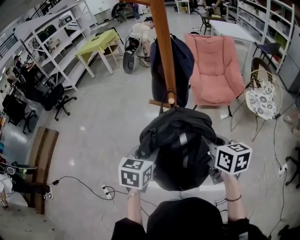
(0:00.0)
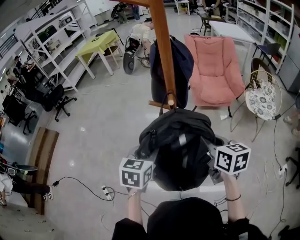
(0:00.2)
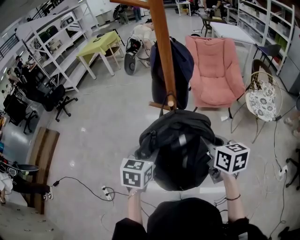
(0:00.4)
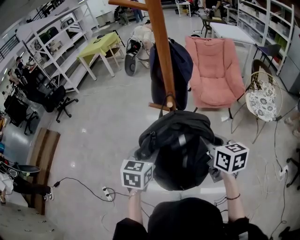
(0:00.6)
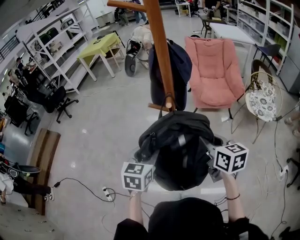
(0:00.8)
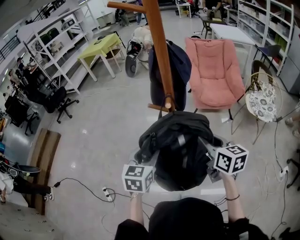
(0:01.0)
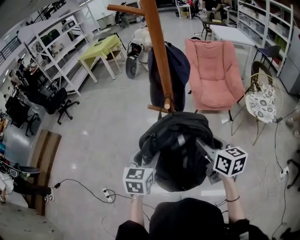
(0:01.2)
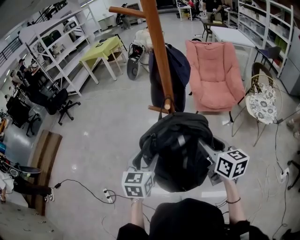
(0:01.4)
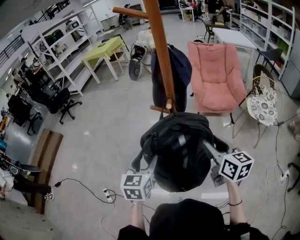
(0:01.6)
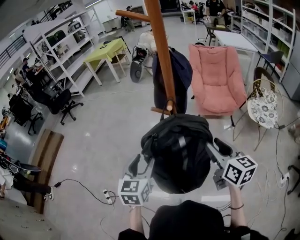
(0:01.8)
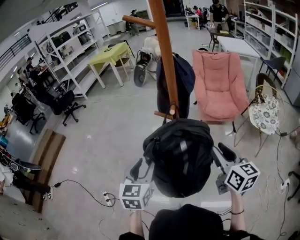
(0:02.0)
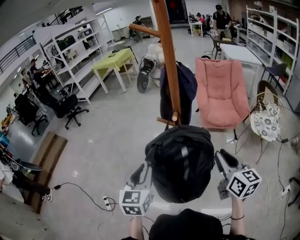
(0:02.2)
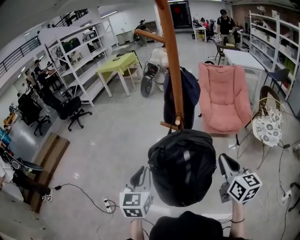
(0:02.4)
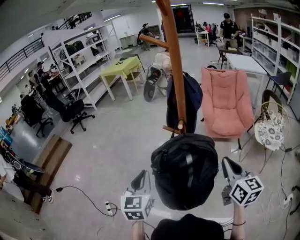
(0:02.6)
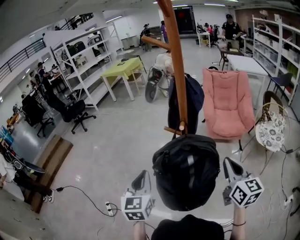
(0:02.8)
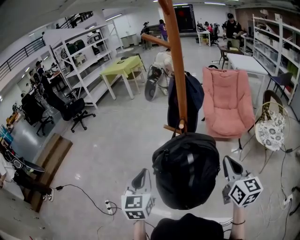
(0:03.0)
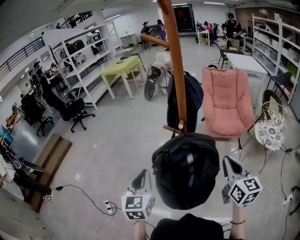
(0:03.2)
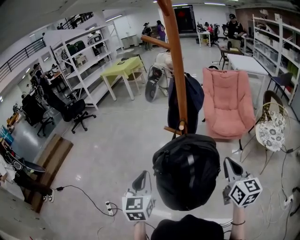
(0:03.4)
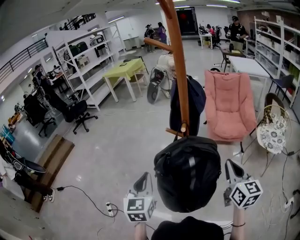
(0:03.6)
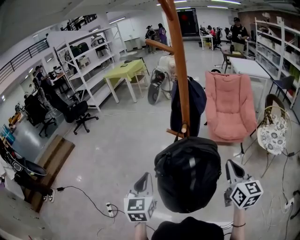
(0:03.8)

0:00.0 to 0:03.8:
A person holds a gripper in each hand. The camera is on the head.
0:00.0 to 0:01.2: The right gripper opens up. The left gripper opens its fingers.
0:01.2 to 0:02.6: The left gripper heads upward, to the left and backward, covering approximately 10 cm, and closes up. Meanwhile the right gripper moves upward, to the right and backward, some 10 cm, and closes its fingers.
0:02.6 to 0:03.8: The grippers make only small movements.

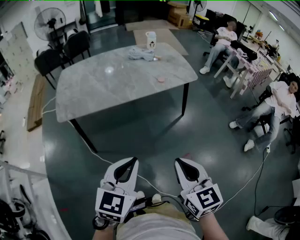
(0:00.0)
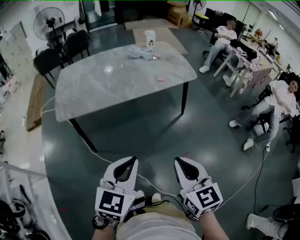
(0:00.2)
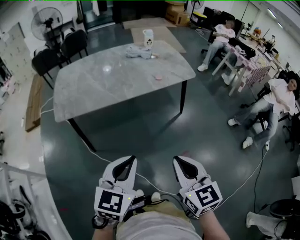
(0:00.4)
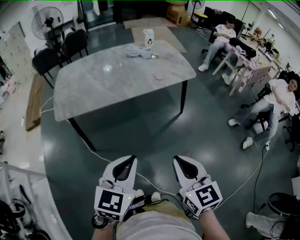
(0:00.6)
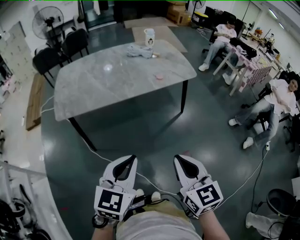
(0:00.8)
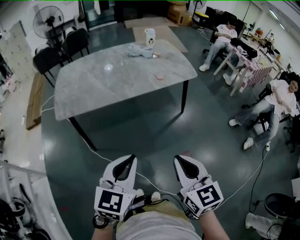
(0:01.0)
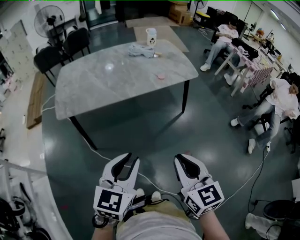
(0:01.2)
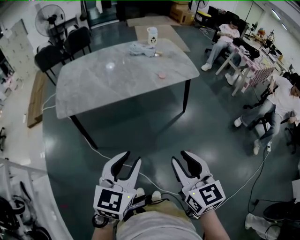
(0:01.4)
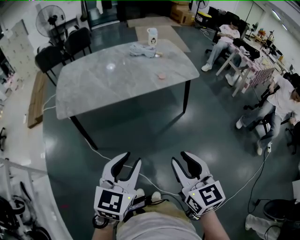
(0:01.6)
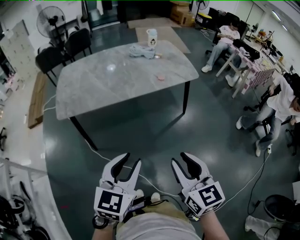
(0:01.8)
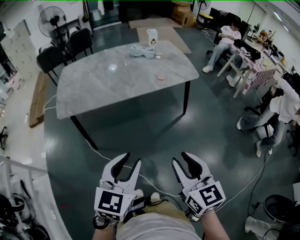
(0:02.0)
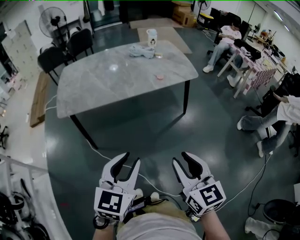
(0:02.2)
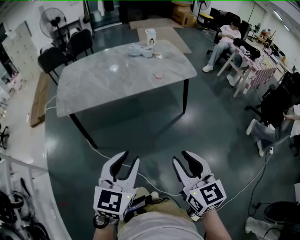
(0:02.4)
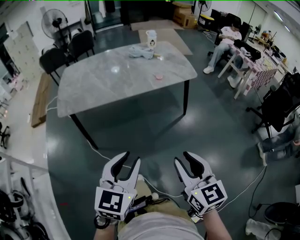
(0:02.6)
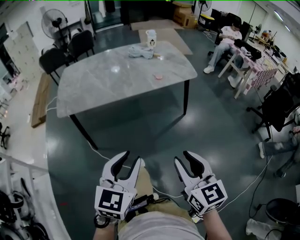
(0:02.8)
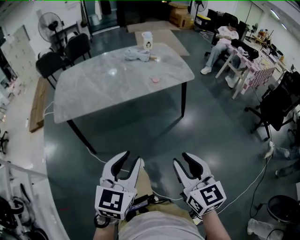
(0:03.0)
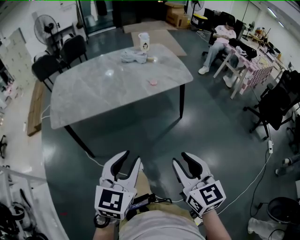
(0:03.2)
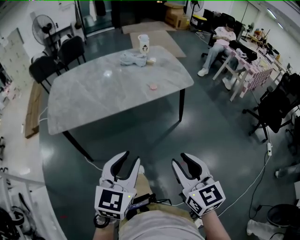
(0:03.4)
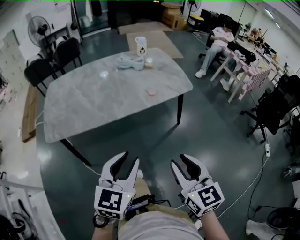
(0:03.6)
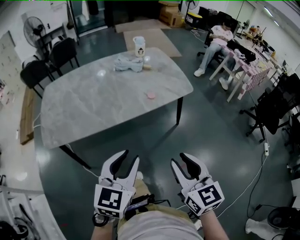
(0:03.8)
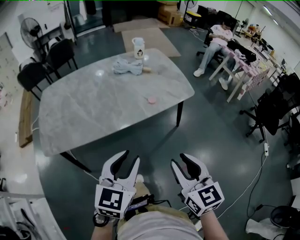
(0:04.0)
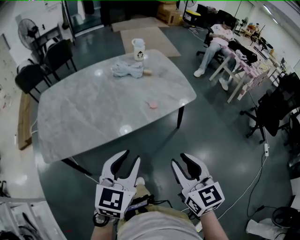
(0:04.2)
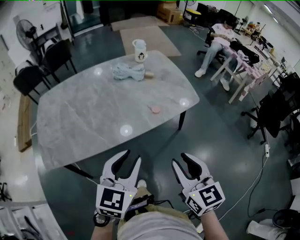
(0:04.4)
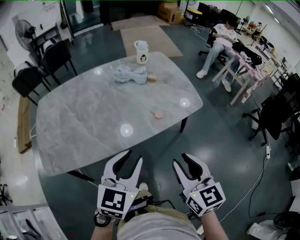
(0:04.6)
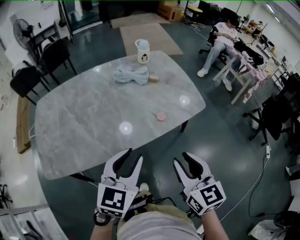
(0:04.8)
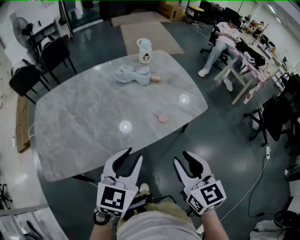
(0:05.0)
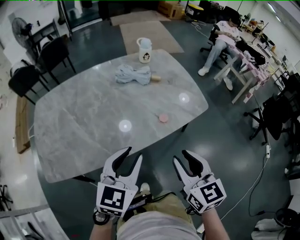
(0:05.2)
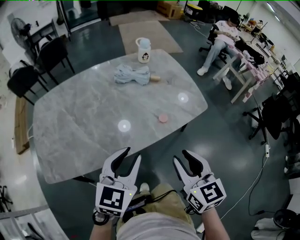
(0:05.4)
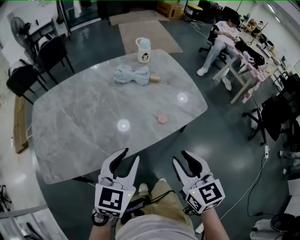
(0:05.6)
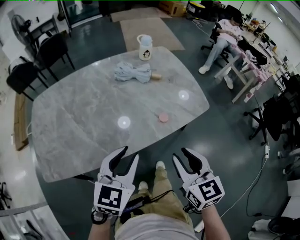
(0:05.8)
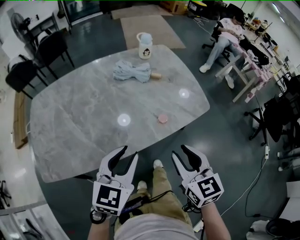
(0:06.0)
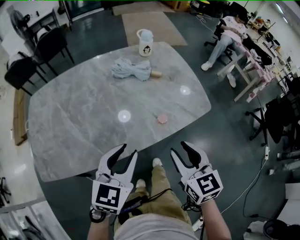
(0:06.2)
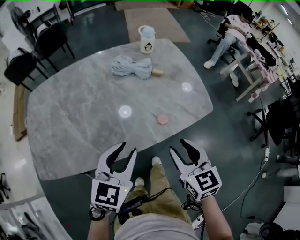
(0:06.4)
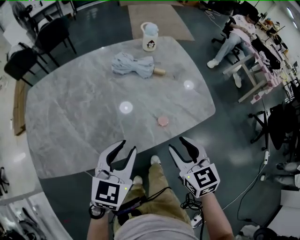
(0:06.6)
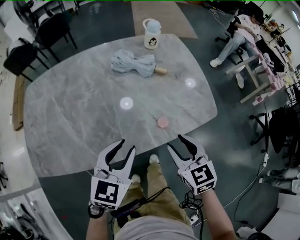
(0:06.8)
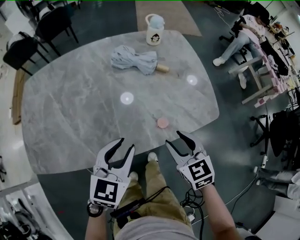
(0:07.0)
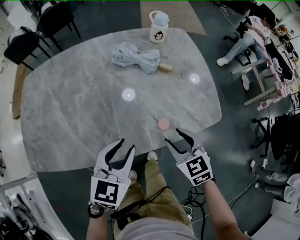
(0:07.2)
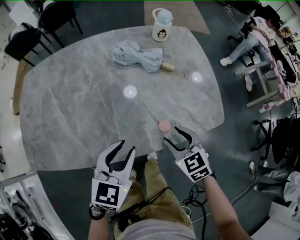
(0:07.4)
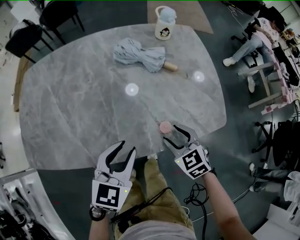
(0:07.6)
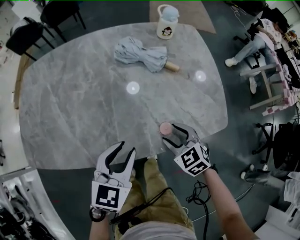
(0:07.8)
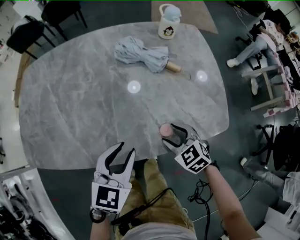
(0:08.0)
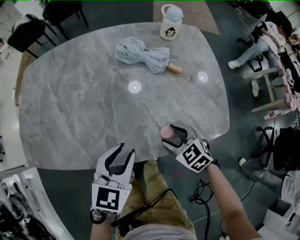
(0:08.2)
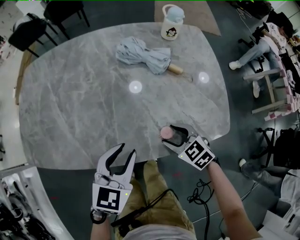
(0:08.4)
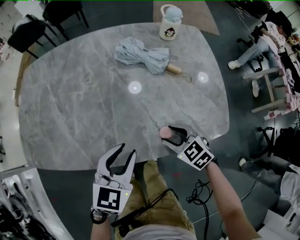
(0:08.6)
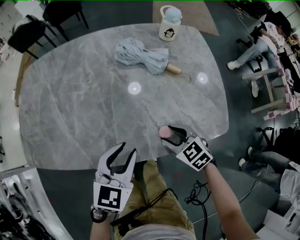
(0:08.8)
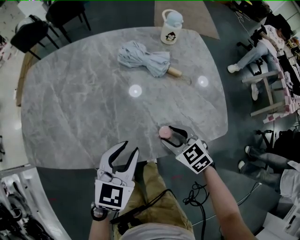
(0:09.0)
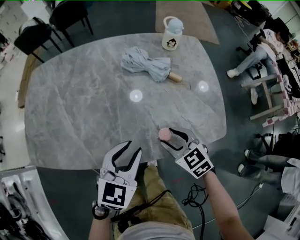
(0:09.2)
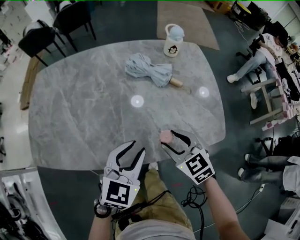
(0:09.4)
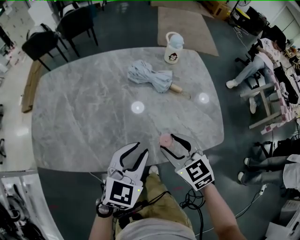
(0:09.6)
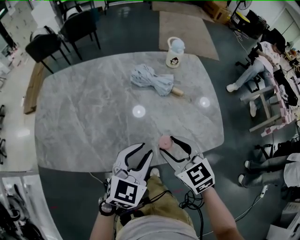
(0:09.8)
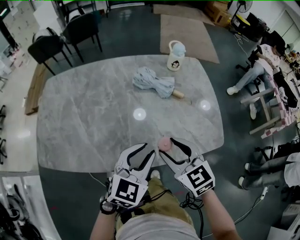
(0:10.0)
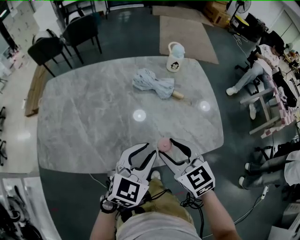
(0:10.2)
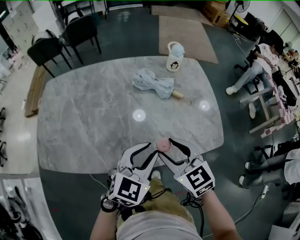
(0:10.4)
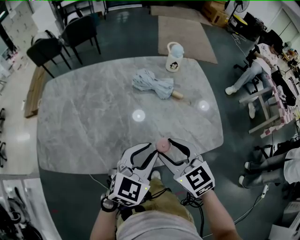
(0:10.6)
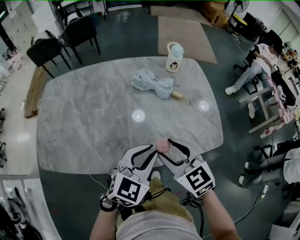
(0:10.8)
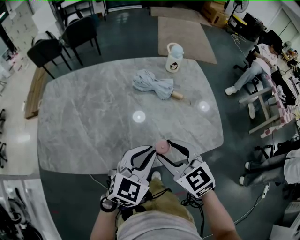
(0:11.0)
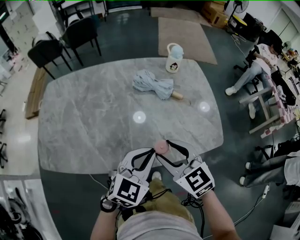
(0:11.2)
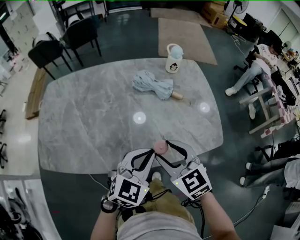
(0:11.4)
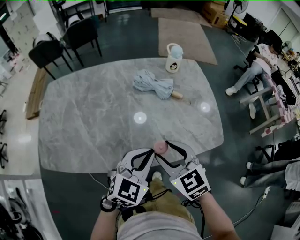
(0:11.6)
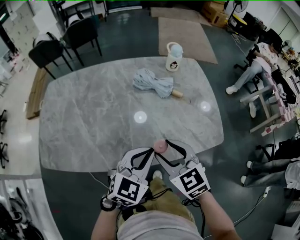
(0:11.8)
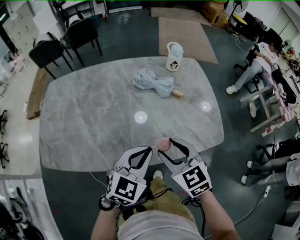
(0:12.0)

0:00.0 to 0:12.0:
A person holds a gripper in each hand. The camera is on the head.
0:00.0 to 0:01.6: The left gripper opens; the right gripper opens its fingers.
0:01.6 to 0:03.0: The right gripper travels to the right by some 5 cm.
0:03.0 to 0:04.4: The two grippers go about 25 cm forward.
0:04.4 to 0:06.0: The grippers both shift forward by approximately 10 cm.
0:06.0 to 0:07.6: The left gripper heads forward and downward, covering some 10 cm. Meanwhile the right gripper heads downward and forward, covering approximately 25 cm, rotates about 40 degrees, and opens its fingers.
0:07.6 to 0:09.0: The grippers make only small movements.
0:09.0 to 0:10.4: The left gripper travels upward by some 5 cm. The right gripper is displaced upward by some 15 cm.
0:10.4 to 0:12.0: The left gripper closes.

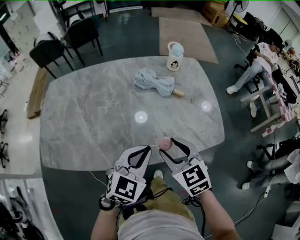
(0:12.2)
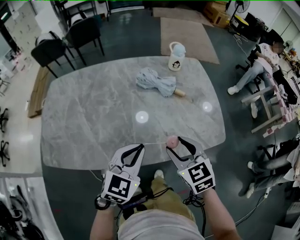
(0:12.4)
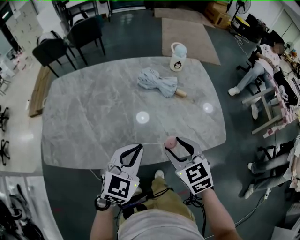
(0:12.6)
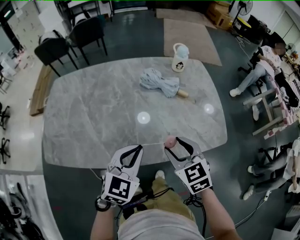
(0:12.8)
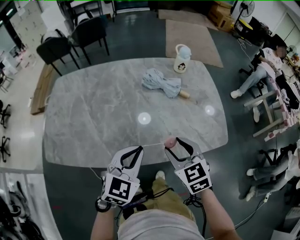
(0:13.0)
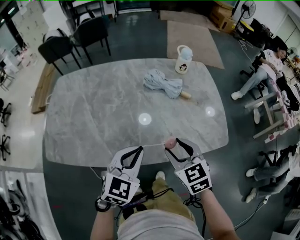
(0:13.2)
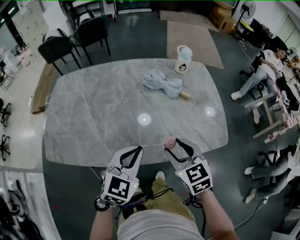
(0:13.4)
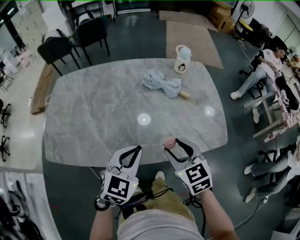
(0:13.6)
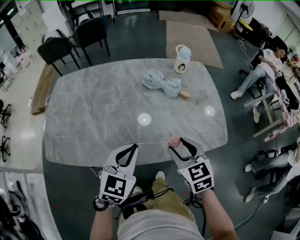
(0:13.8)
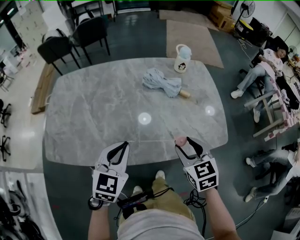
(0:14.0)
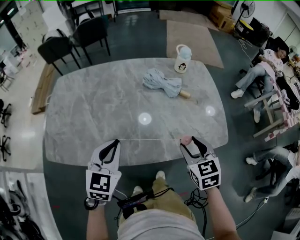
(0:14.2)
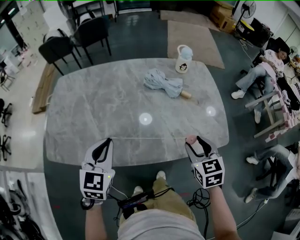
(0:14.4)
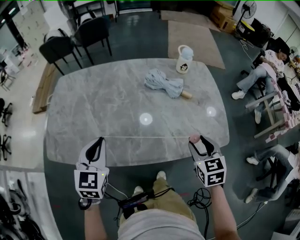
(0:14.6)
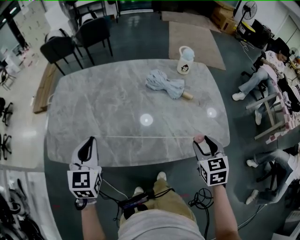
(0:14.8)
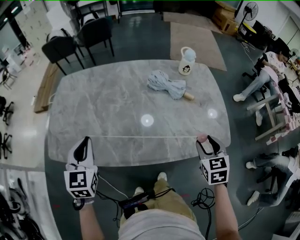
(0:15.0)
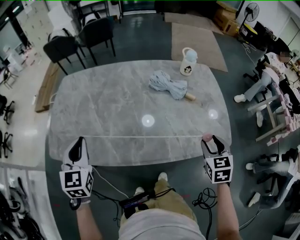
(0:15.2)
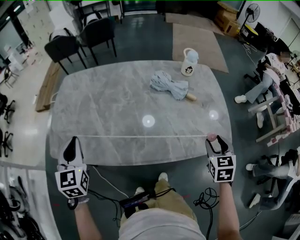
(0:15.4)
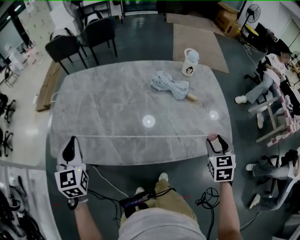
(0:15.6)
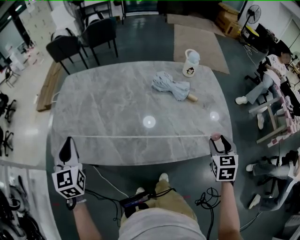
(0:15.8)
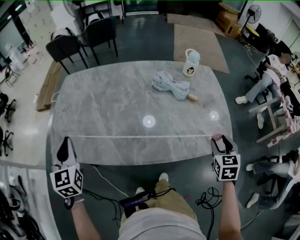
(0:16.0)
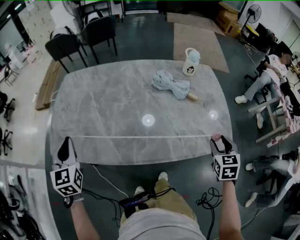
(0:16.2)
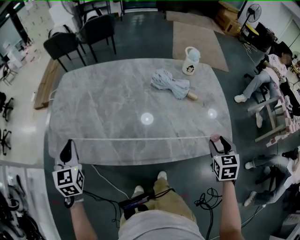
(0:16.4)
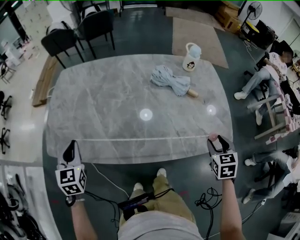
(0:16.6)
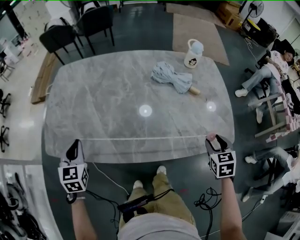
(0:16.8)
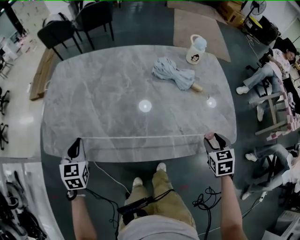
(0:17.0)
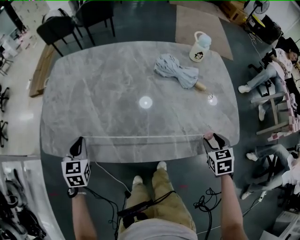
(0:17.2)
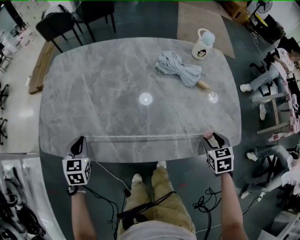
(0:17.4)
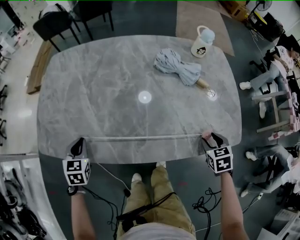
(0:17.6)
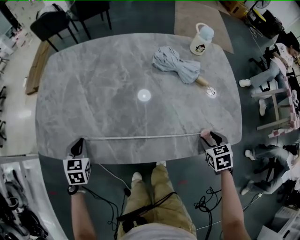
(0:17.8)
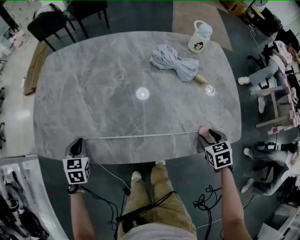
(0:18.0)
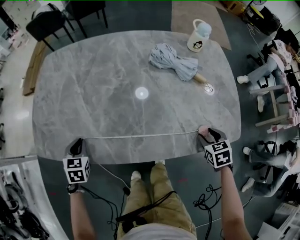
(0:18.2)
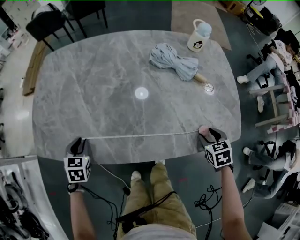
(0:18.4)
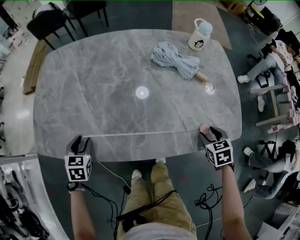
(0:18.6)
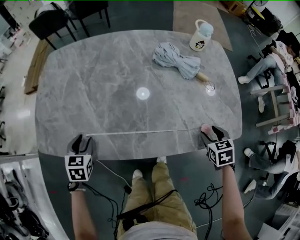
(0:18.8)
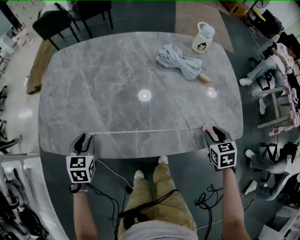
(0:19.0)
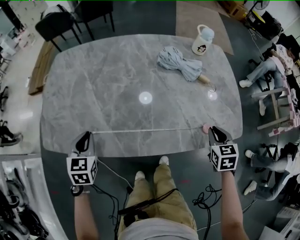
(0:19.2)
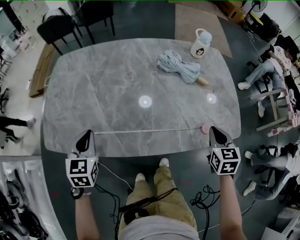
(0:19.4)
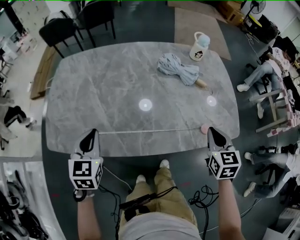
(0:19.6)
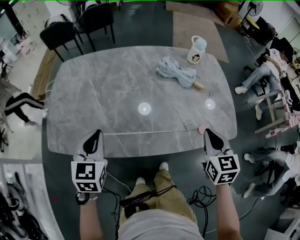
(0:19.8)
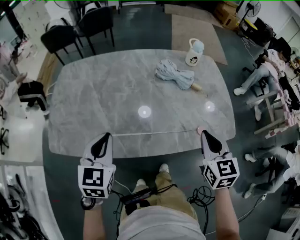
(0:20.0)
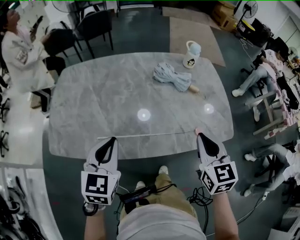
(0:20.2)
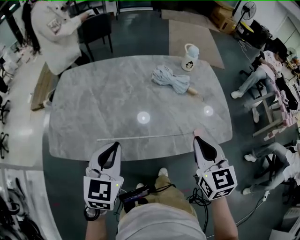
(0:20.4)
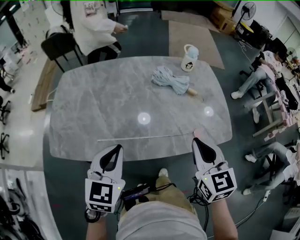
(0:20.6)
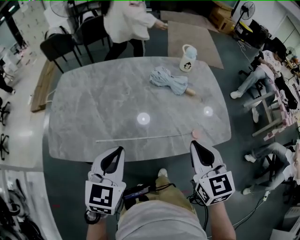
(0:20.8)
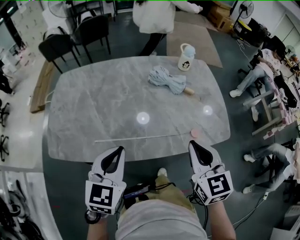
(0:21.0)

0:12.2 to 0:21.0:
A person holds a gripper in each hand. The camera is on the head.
0:12.2 to 0:13.6: The left gripper moves to the left, some 5 cm.
0:13.6 to 0:15.2: The right gripper heads to the right, covering some 15 cm, and rotates approximately 20 degrees. The left gripper is displaced to the left by some 25 cm, and rotates some 40 degrees.
0:15.2 to 0:16.6: The left gripper moves to the left and downward, about 10 cm.
0:16.6 to 0:18.0: Both grippers move downward, roughly 15 cm. The left gripper turns by approximately 20 degrees.
0:18.0 to 0:19.6: The left gripper moves upward and to the right, some 15 cm, turns by some 20 degrees, and opens and closes again, while the right gripper moves upward and to the left, approximately 15 cm, changes its angle by about 30 degrees, and closes.
0:19.6 to 0:21.0: The left gripper is displaced to the right, upward and backward by approximately 15 cm; the right gripper travels upward, to the left and backward by approximately 15 cm.
